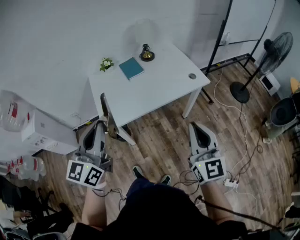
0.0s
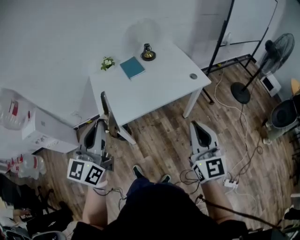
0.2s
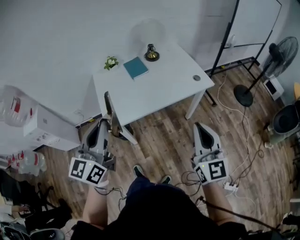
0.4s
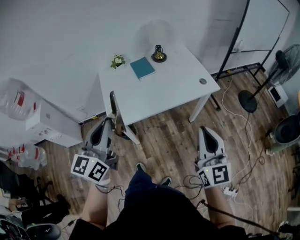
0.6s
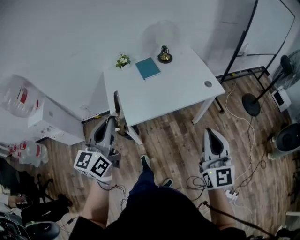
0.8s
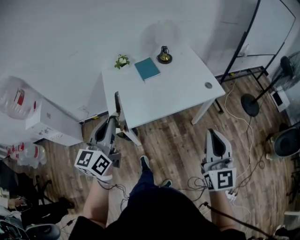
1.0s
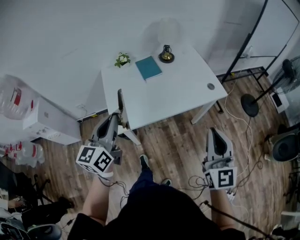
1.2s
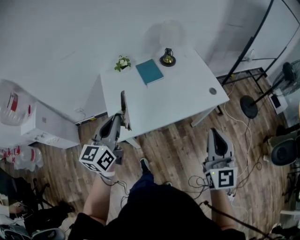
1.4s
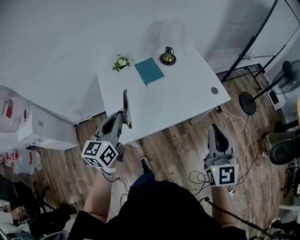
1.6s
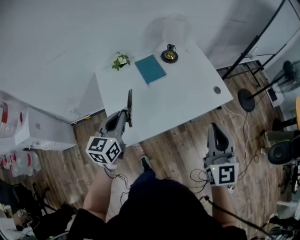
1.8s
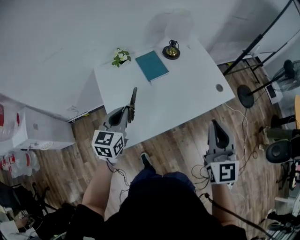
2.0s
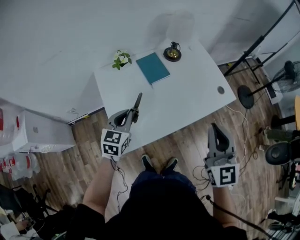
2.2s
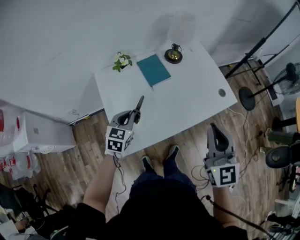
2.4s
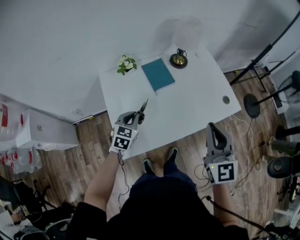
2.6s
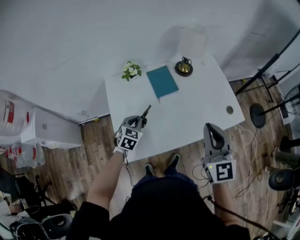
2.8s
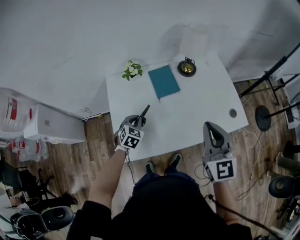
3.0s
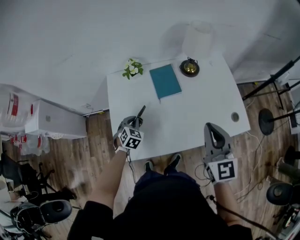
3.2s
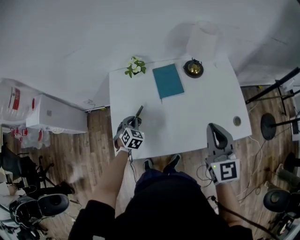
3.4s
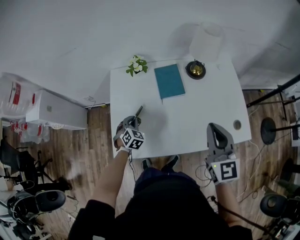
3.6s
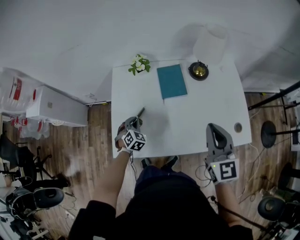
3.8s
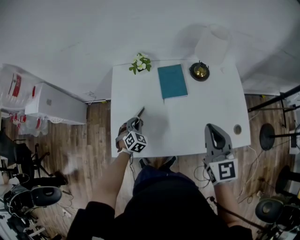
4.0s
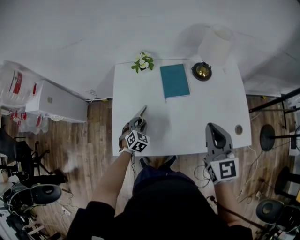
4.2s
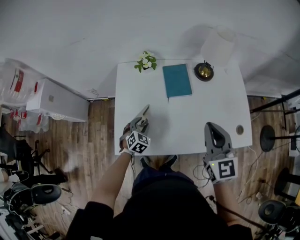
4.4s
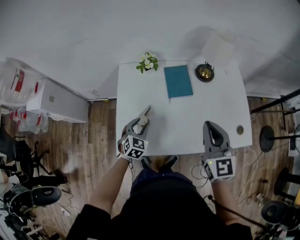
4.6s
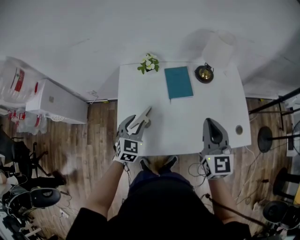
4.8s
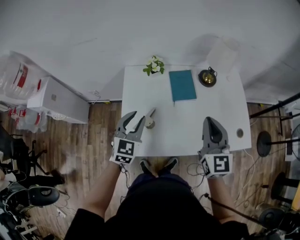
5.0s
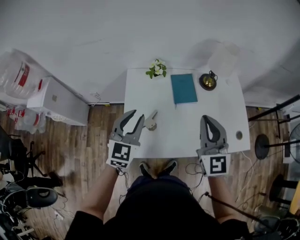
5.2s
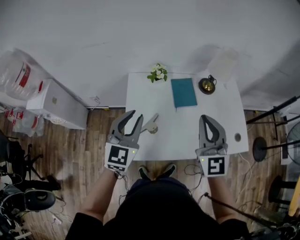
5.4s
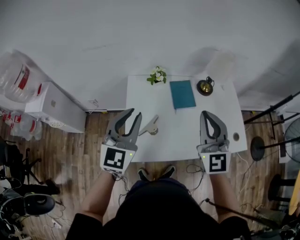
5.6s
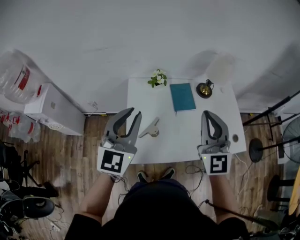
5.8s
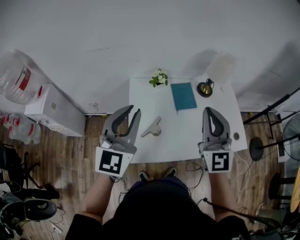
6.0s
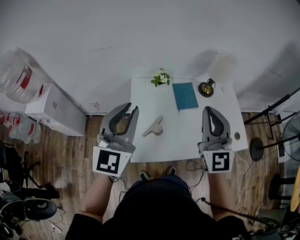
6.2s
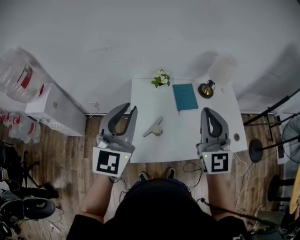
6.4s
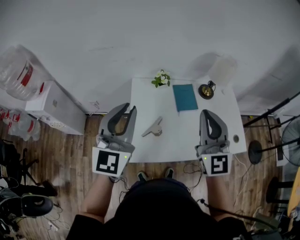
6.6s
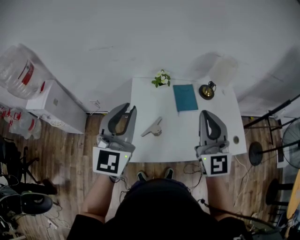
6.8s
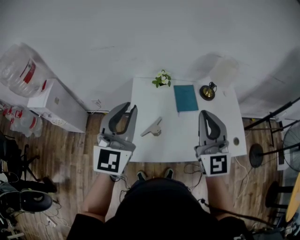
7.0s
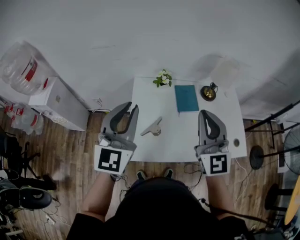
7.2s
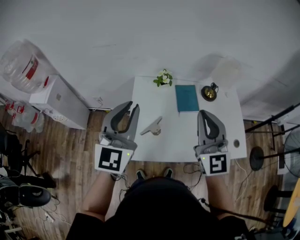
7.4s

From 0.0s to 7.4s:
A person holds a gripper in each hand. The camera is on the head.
From 0.0s to 1.4s: The right gripper goes about 10 cm forward, while the left gripper shifts some 20 cm forward, downward and to the left.
From 1.4s to 3.0s: The left gripper shifts some 35 cm downward and forward, and tilts its fingers roughly 40 degrees downward. Meanwhile the right gripper shifts roughly 25 cm forward.
From 3.0s to 4.4s: The left gripper is displaced downward by approximately 5 cm, and opens up. The right gripper is displaced forward by about 5 cm.
From 4.4s to 6.0s: The right gripper shifts some 20 cm to the left and upward, and swivels about 30 degrees, while the left gripper travels upward by approximately 40 cm, tilts its fingers roughly 50 degrees upward, and closes its fingers.
From 6.0s to 7.4s: There are only small adjustments of the grippers.

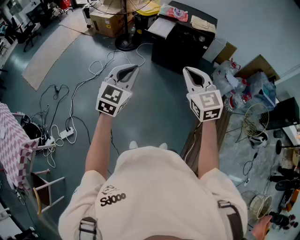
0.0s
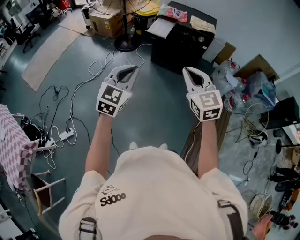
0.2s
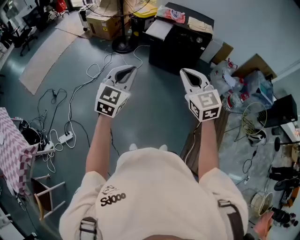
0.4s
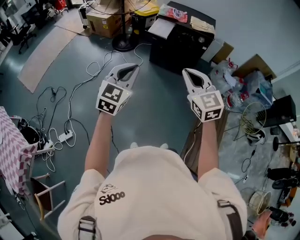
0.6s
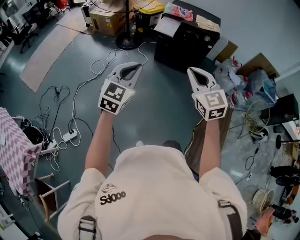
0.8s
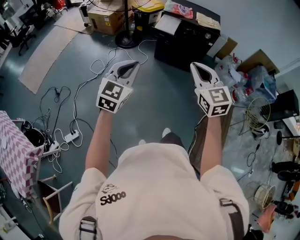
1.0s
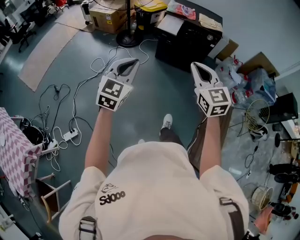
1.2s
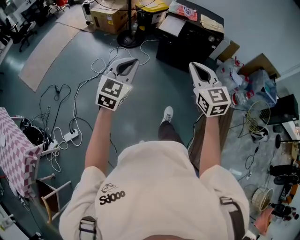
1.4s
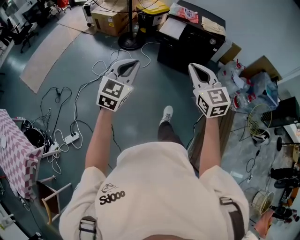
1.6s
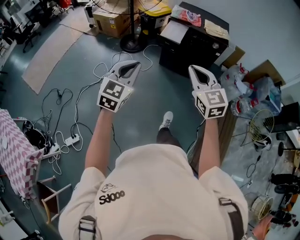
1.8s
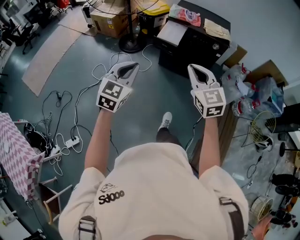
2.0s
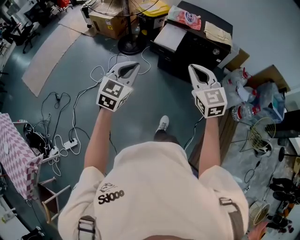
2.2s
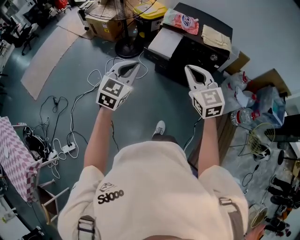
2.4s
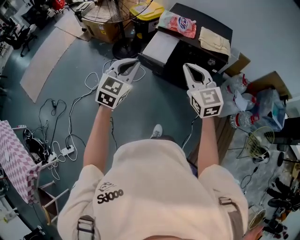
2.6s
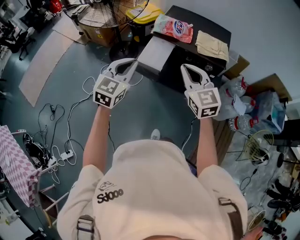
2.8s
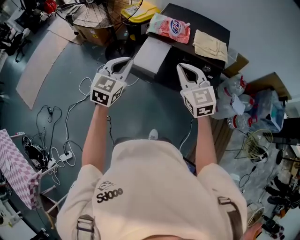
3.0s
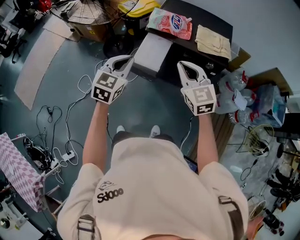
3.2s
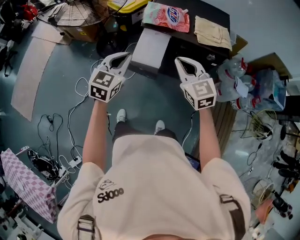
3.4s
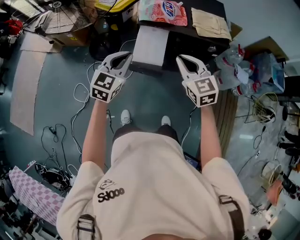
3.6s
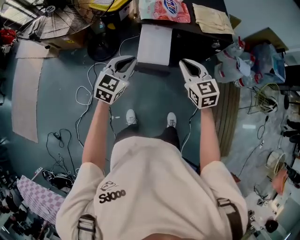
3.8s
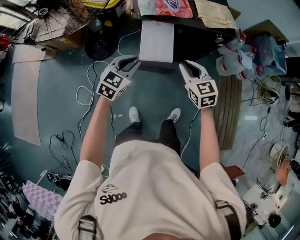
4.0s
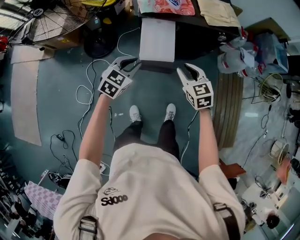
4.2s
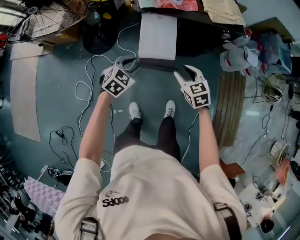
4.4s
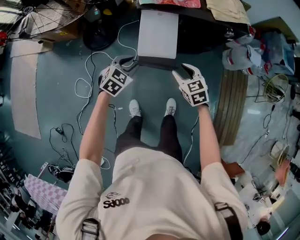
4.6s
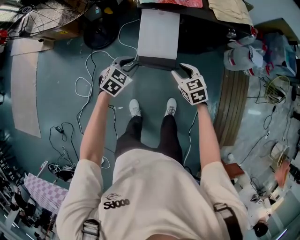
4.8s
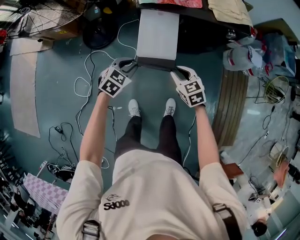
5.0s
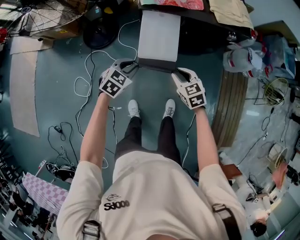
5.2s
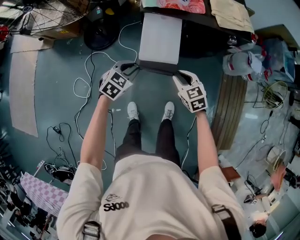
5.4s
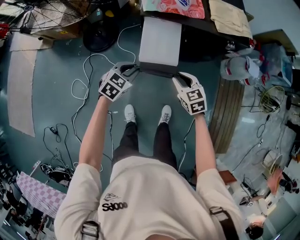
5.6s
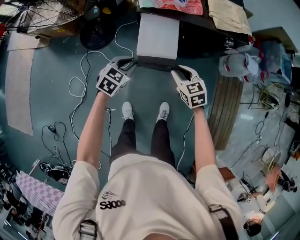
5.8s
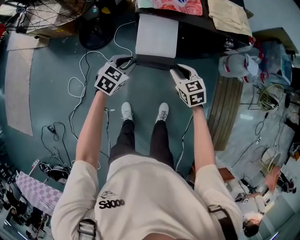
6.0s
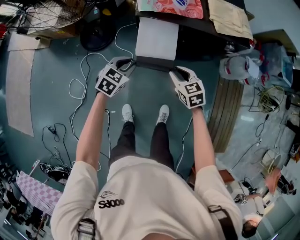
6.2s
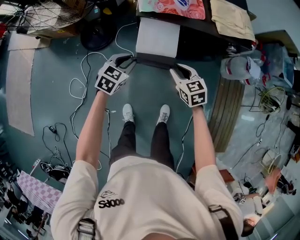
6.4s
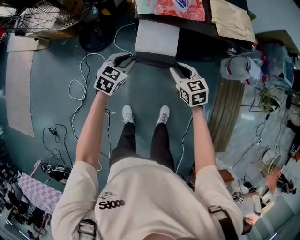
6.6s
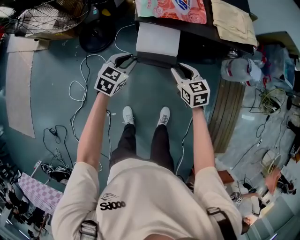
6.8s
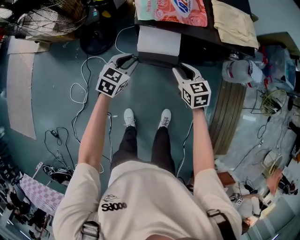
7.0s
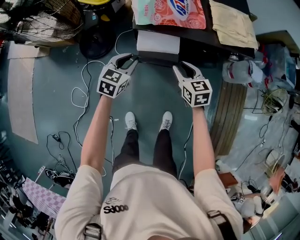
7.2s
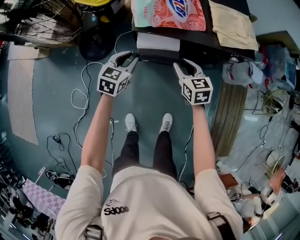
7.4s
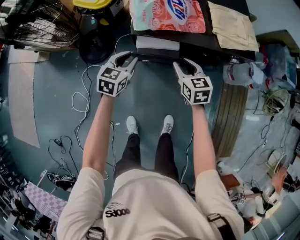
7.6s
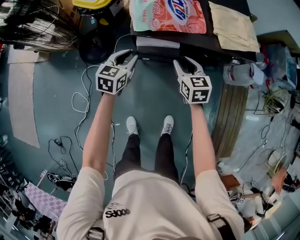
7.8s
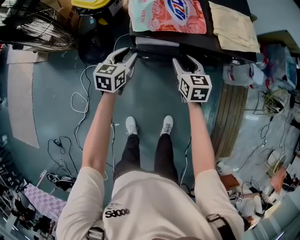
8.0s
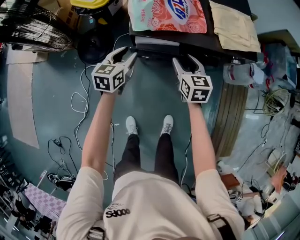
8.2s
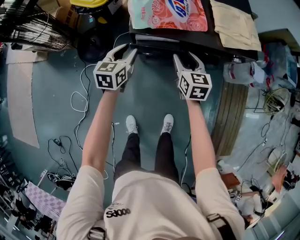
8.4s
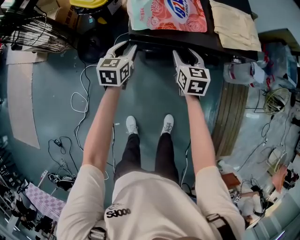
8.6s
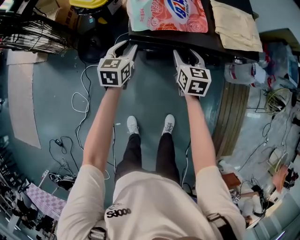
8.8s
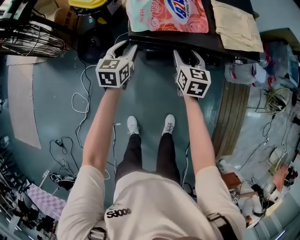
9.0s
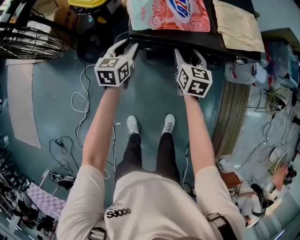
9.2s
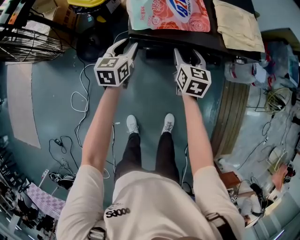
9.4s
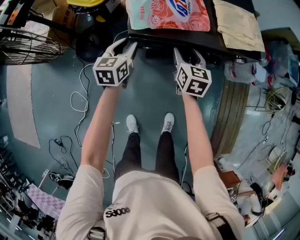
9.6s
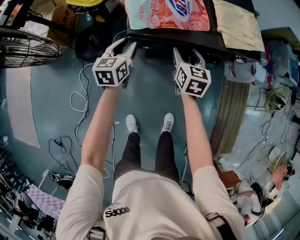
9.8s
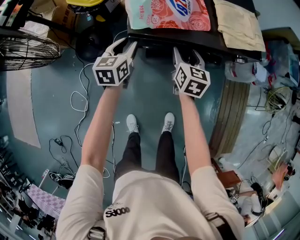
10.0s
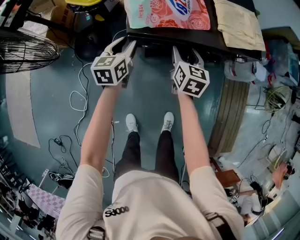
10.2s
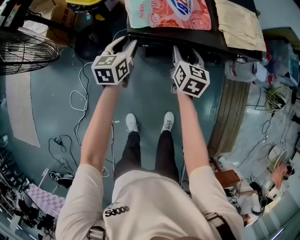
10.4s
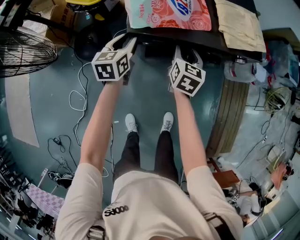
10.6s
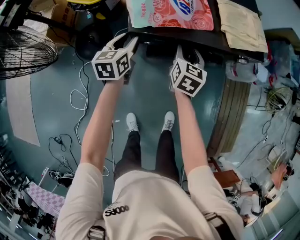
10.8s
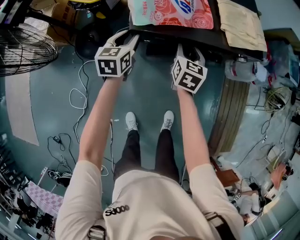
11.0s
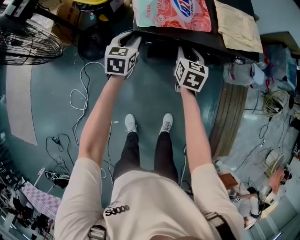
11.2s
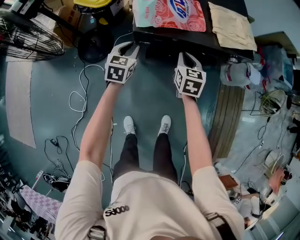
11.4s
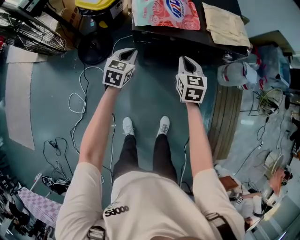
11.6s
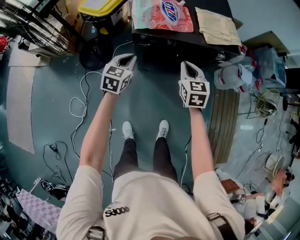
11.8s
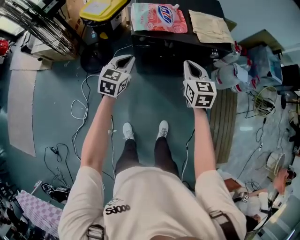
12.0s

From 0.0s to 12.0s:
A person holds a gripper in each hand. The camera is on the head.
From 0.0s to 1.6s: Both grippers travel together to the left and forward, roughly 15 cm.
From 1.6s to 3.0s: The two grippers travel together, forward, some 50 cm.
From 3.0s to 4.4s: The two grippers go some 30 cm downward. The right gripper rotates roughly 40 degrees, and opens its fingers. Meanwhile the left gripper rotates approximately 50 degrees, and opens.
From 4.4s to 6.0s: The left gripper shifts by some 5 cm. Meanwhile the right gripper heads forward, covering some 5 cm.
From 6.0s to 7.6s: Both grippers move forward, roughly 15 cm.
From 7.6s to 9.0s: The two grippers go approximately 5 cm forward. The right gripper opens.
From 9.0s to 10.4s: The grippers move only a little.
From 10.4s to 12.0s: The right gripper moves upward, backward and to the right, approximately 25 cm, turns by approximately 20 degrees, and closes. The left gripper goes approximately 20 cm backward and upward, swivels some 20 degrees, and closes its fingers.

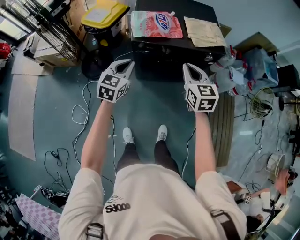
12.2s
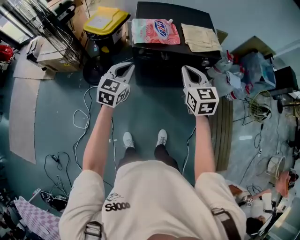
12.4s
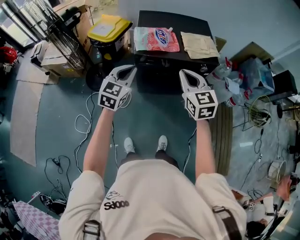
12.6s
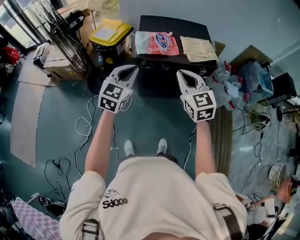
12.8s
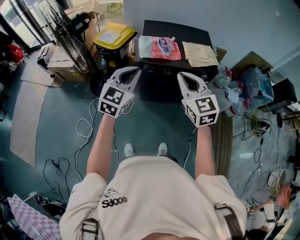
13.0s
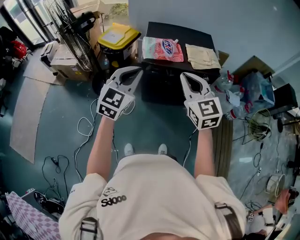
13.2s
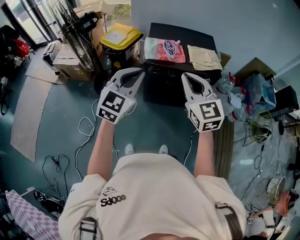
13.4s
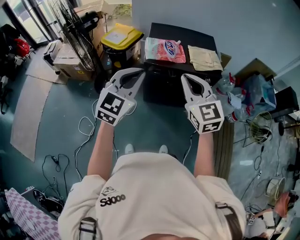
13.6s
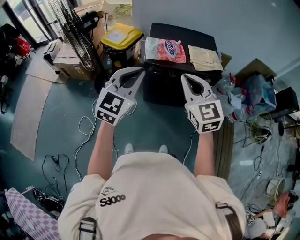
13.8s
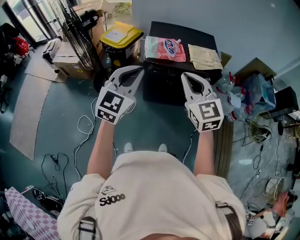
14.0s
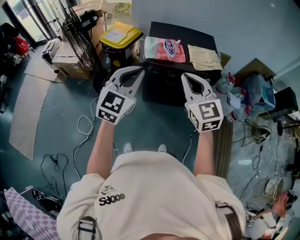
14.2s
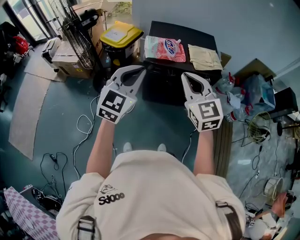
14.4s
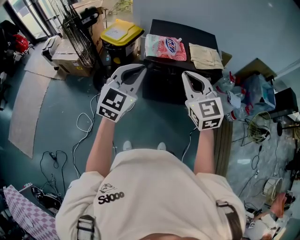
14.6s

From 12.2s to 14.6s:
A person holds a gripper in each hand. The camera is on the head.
From 12.2s to 13.4s: Both grippers travel together upward and backward, approximately 20 cm. The right gripper turns by about 20 degrees. Meanwhile the left gripper changes its angle by approximately 20 degrees.
From 13.4s to 14.6s: The grippers stay close to where they were, moving slightly.

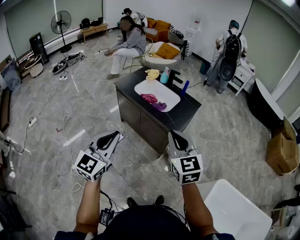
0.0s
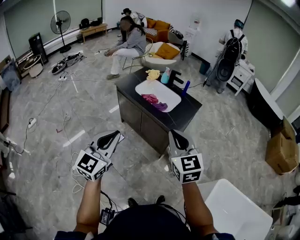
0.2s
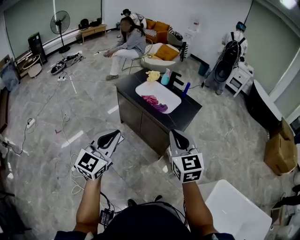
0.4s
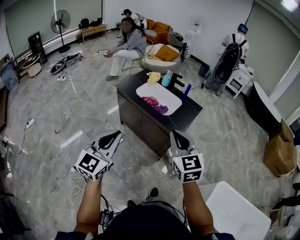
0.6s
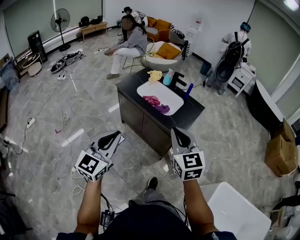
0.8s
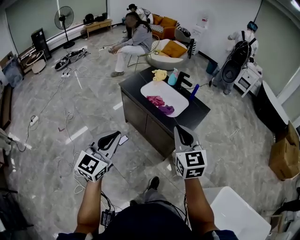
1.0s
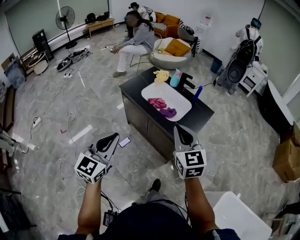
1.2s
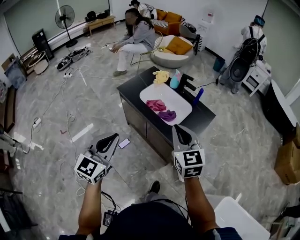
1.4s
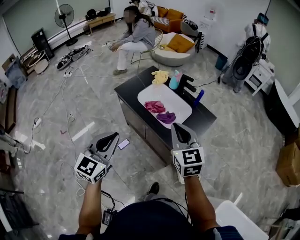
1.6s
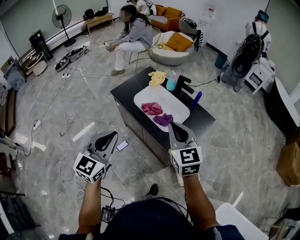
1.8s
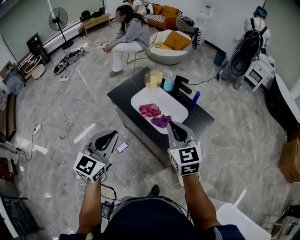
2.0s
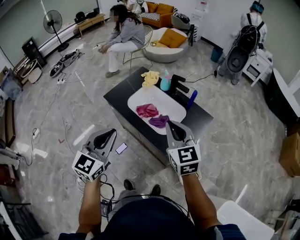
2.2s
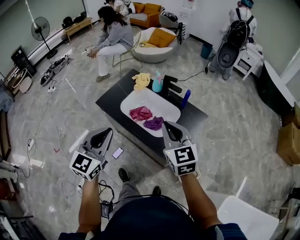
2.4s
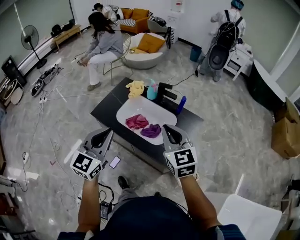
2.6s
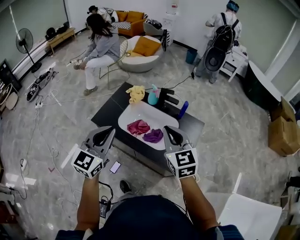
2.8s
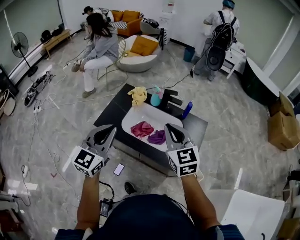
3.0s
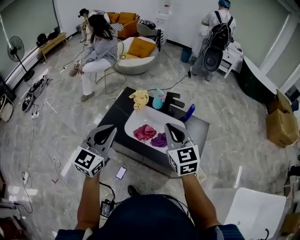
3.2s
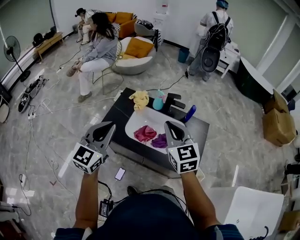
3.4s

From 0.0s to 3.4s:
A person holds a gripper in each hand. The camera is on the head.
From 0.0s to 1.6s: The two grippers go some 30 cm forward.
From 1.6s to 3.4s: The grippers both shift forward and to the left by approximately 35 cm. The left gripper rotates roughly 20 degrees.
